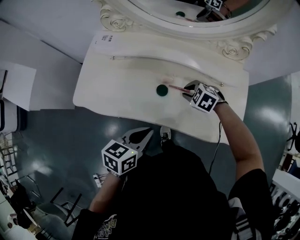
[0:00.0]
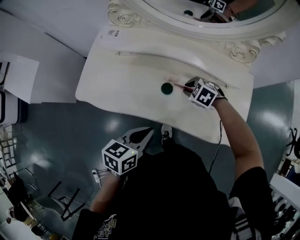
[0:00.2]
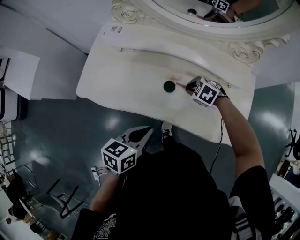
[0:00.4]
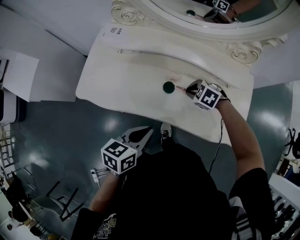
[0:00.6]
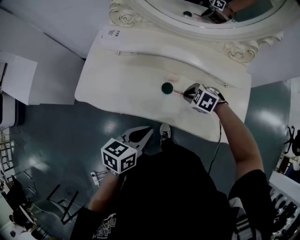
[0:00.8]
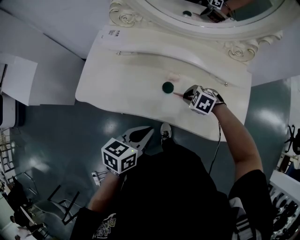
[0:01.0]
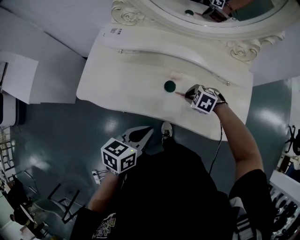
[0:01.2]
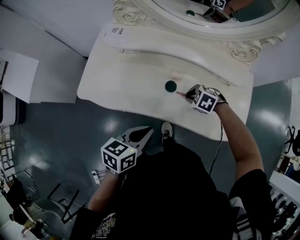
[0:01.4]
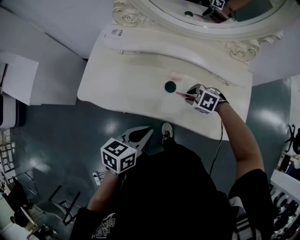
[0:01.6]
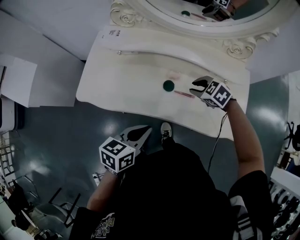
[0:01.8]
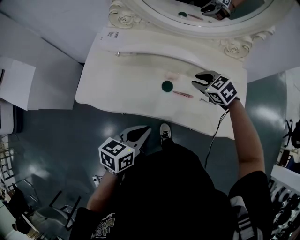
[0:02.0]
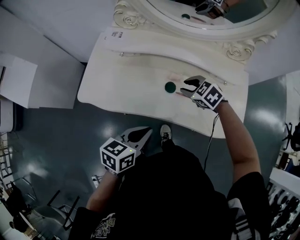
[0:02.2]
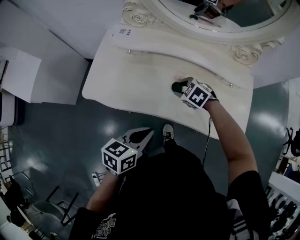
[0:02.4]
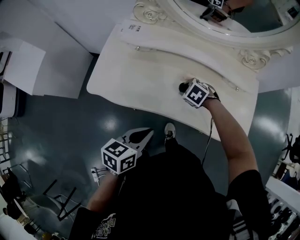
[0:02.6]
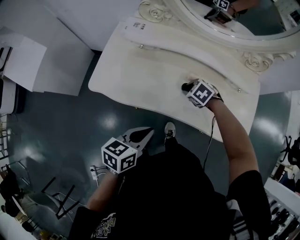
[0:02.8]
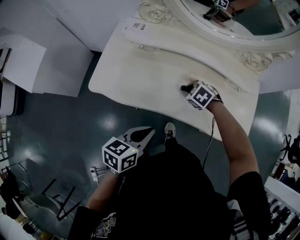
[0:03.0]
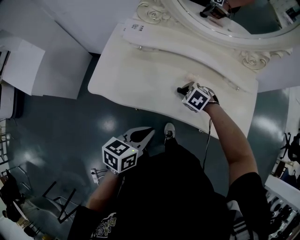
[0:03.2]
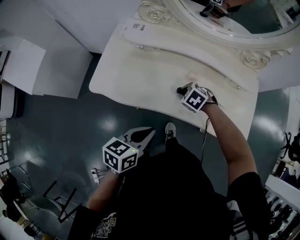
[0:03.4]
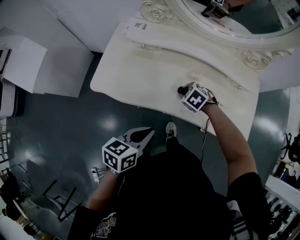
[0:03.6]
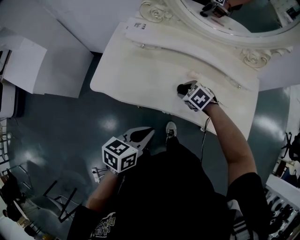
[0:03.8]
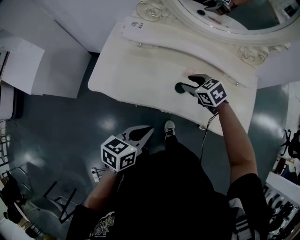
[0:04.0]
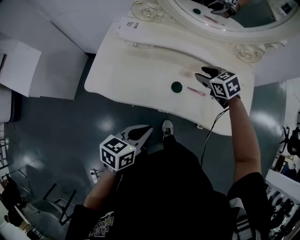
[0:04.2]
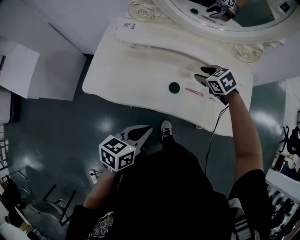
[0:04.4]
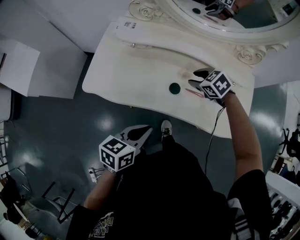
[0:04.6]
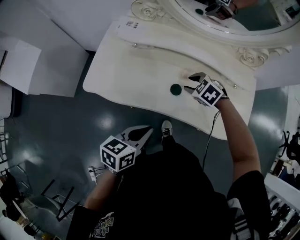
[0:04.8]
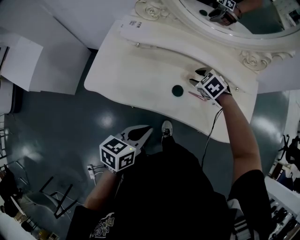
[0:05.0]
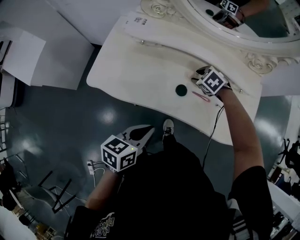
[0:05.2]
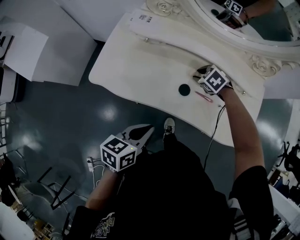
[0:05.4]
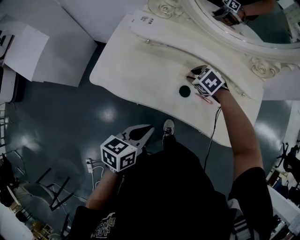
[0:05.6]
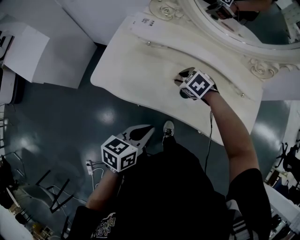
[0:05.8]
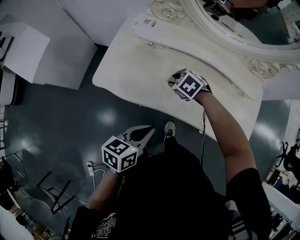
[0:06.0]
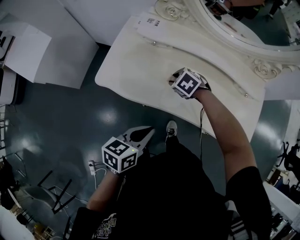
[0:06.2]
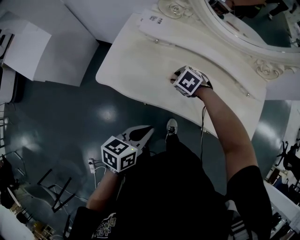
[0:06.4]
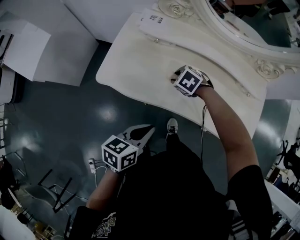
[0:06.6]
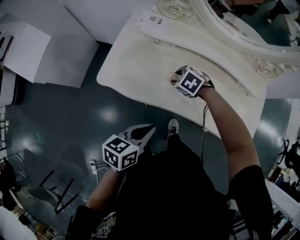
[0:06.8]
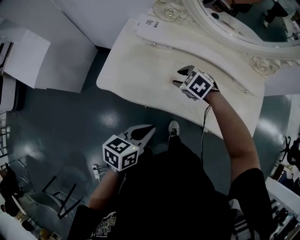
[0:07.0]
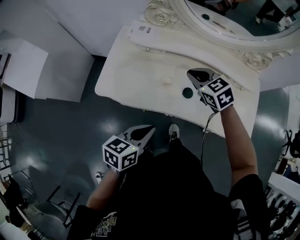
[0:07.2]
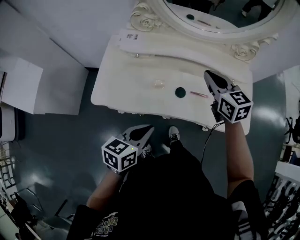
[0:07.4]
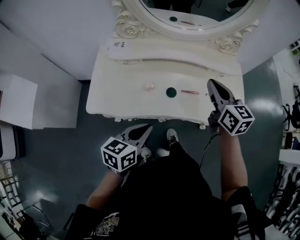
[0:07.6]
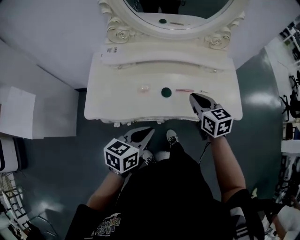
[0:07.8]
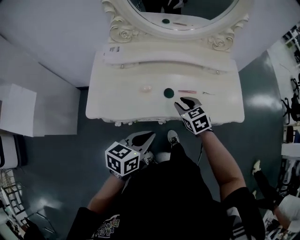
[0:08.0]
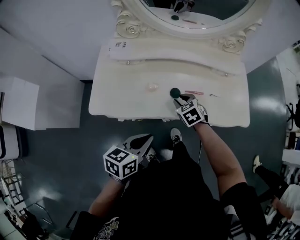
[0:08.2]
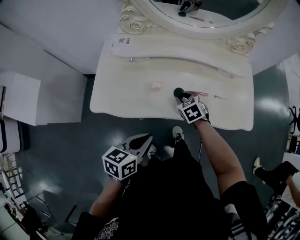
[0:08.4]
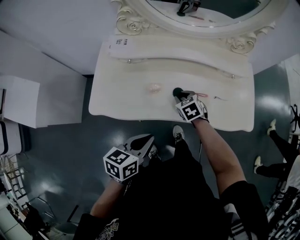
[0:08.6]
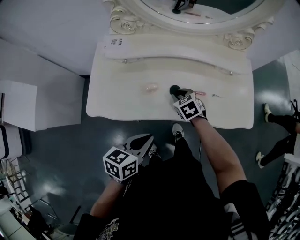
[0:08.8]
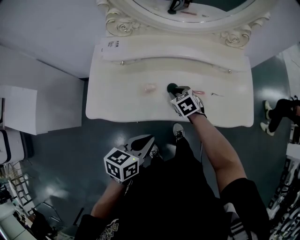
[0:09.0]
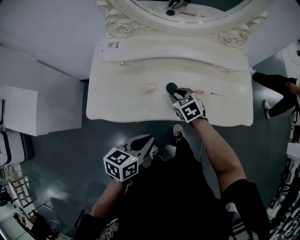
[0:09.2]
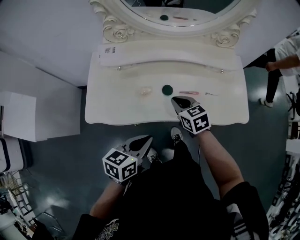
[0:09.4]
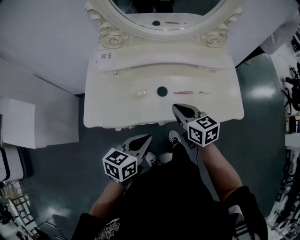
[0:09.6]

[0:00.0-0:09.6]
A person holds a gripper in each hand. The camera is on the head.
0:00.0 to 0:01.6: The grippers stay close to where they were, moving slightly.
0:01.6 to 0:03.2: The left gripper changes place by about 5 cm. The right gripper moves about 10 cm upward and comes back.
0:03.2 to 0:04.8: The right gripper travels upward and back again, approximately 10 cm each way, and opens its fingers.
0:04.8 to 0:06.4: The right gripper shifts roughly 15 cm to the left, while the left gripper heads to the left, covering approximately 5 cm.
0:06.4 to 0:08.0: The right gripper goes upward and returns, about 25 cm each way, rotates roughly 50 degrees, and closes, then reopens; the left gripper changes place by some 5 cm, and changes its angle by approximately 20 degrees.
0:08.0 to 0:09.6: The right gripper shifts some 5 cm upward, changes its angle by approximately 30 degrees, and closes its fingers.

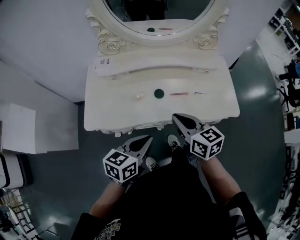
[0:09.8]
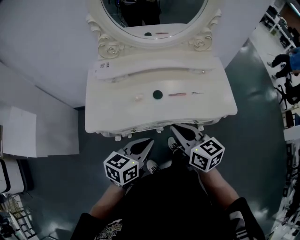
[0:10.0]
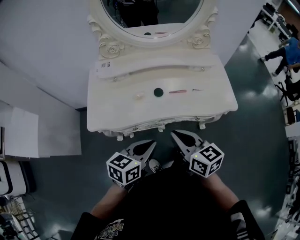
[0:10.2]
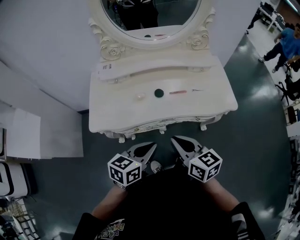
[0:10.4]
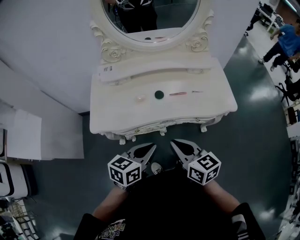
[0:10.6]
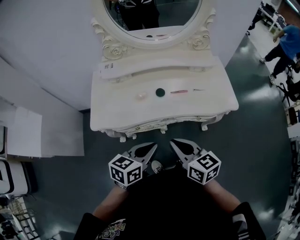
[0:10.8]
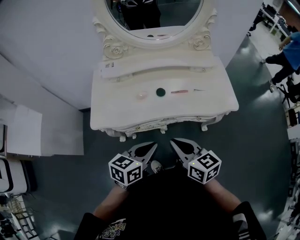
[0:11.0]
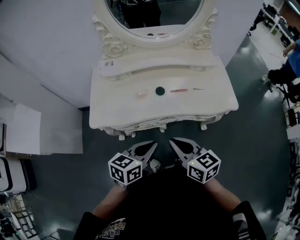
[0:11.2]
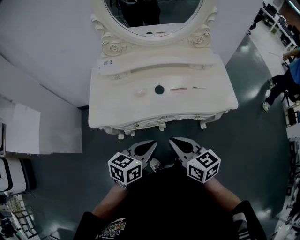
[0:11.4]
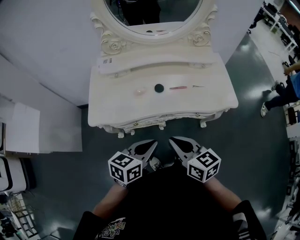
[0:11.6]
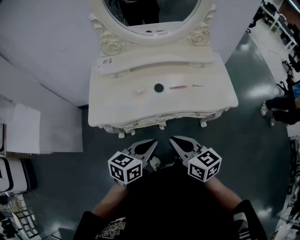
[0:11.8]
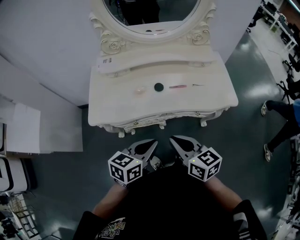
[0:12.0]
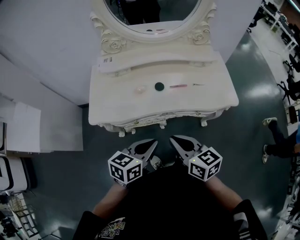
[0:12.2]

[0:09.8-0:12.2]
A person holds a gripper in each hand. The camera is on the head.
0:09.8 to 0:11.0: The left gripper travels backward by about 5 cm; the right gripper goes approximately 15 cm backward.
0:11.0 to 0:12.2: The two grippers keep their place.

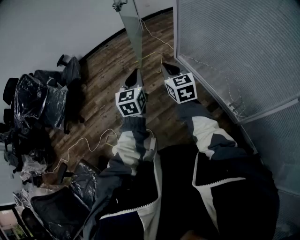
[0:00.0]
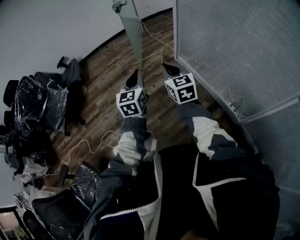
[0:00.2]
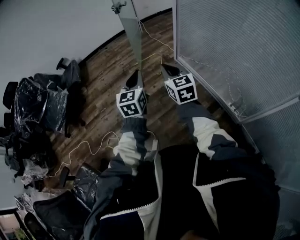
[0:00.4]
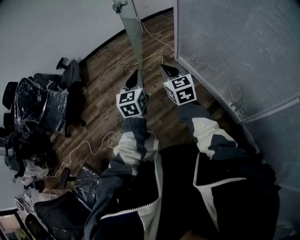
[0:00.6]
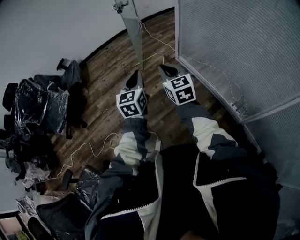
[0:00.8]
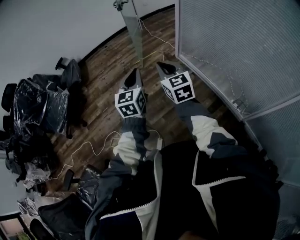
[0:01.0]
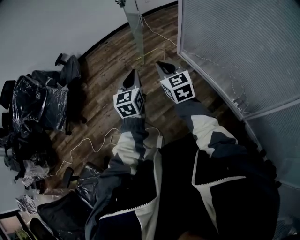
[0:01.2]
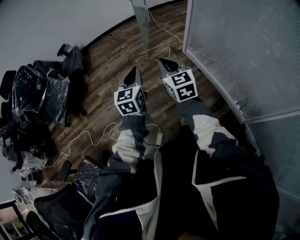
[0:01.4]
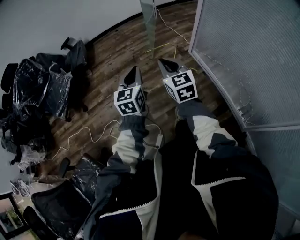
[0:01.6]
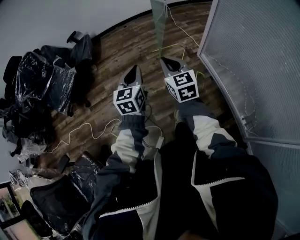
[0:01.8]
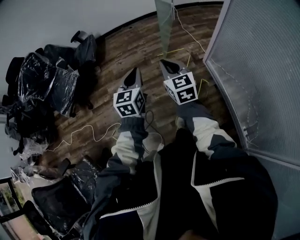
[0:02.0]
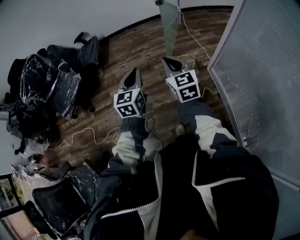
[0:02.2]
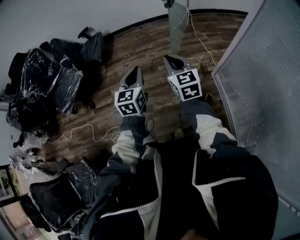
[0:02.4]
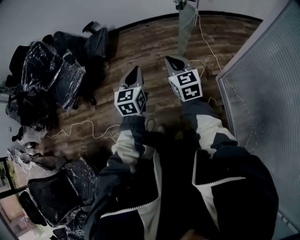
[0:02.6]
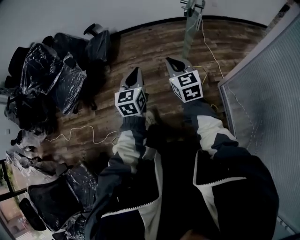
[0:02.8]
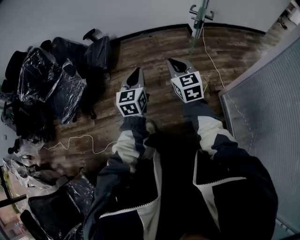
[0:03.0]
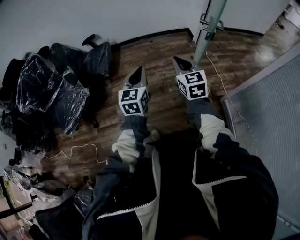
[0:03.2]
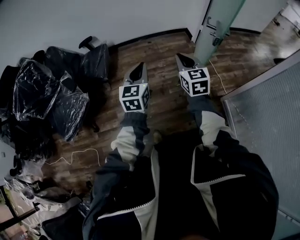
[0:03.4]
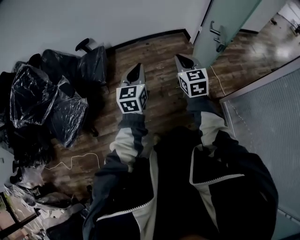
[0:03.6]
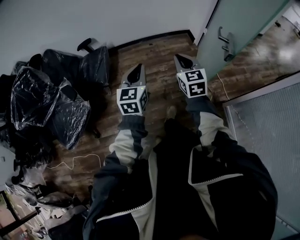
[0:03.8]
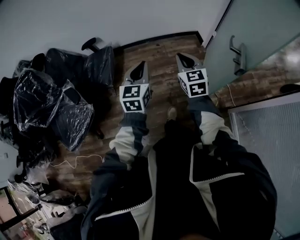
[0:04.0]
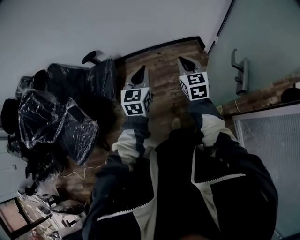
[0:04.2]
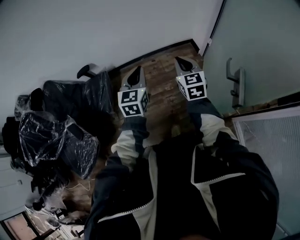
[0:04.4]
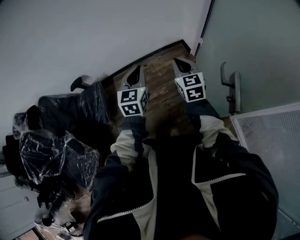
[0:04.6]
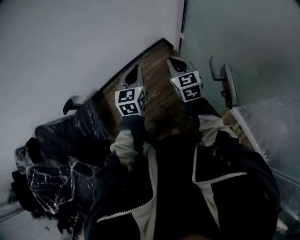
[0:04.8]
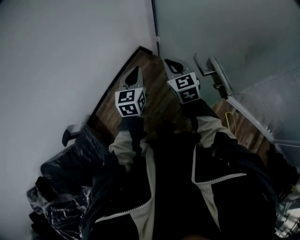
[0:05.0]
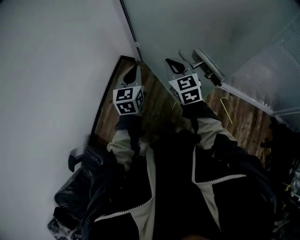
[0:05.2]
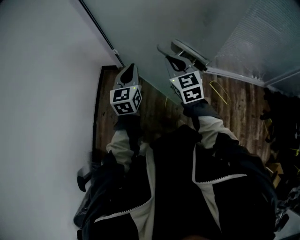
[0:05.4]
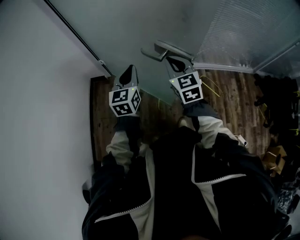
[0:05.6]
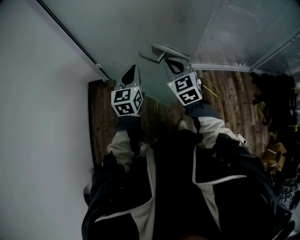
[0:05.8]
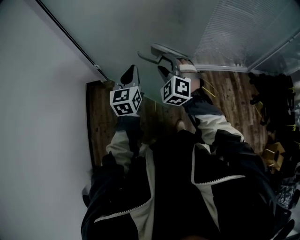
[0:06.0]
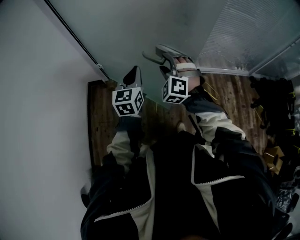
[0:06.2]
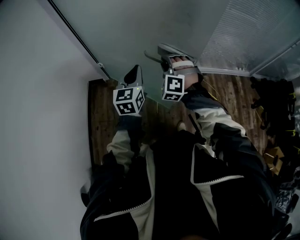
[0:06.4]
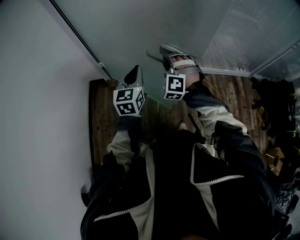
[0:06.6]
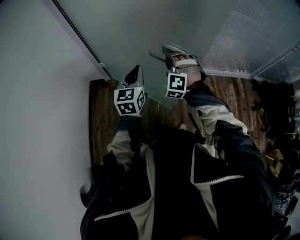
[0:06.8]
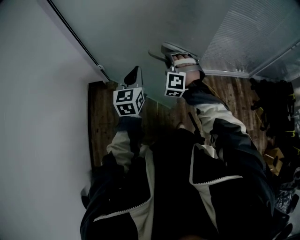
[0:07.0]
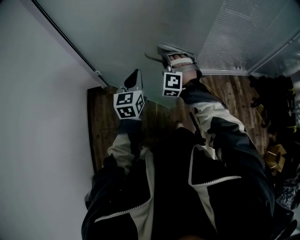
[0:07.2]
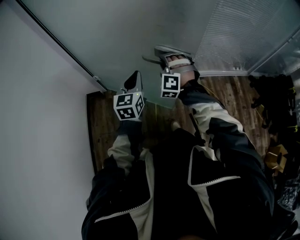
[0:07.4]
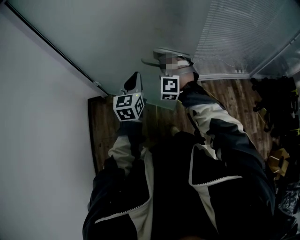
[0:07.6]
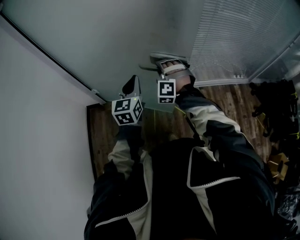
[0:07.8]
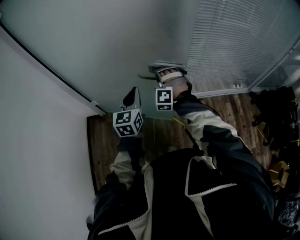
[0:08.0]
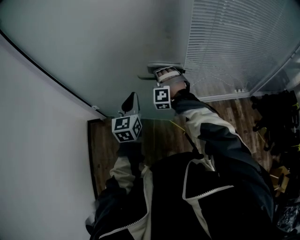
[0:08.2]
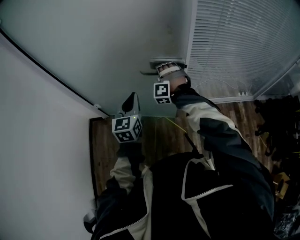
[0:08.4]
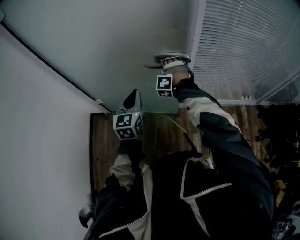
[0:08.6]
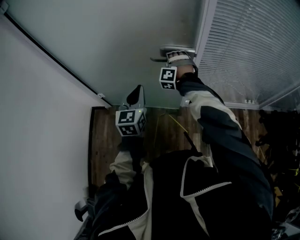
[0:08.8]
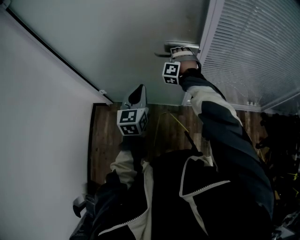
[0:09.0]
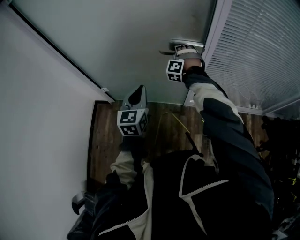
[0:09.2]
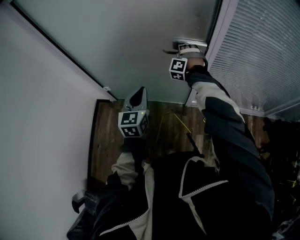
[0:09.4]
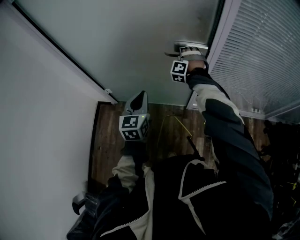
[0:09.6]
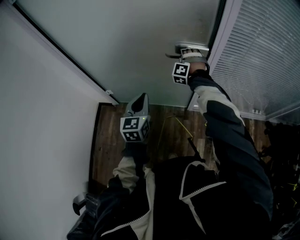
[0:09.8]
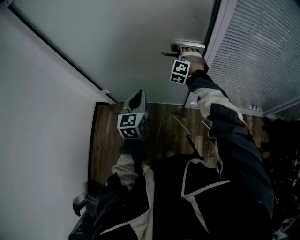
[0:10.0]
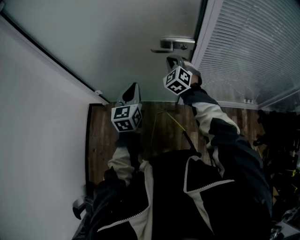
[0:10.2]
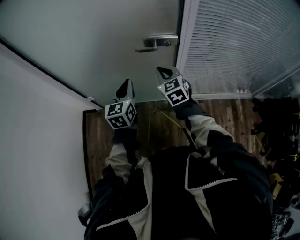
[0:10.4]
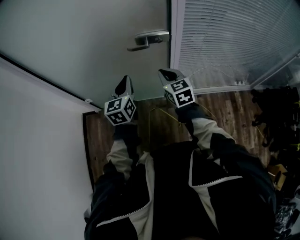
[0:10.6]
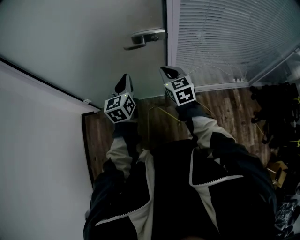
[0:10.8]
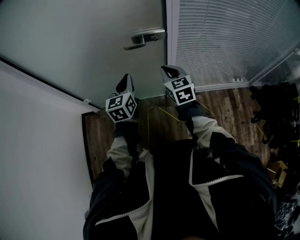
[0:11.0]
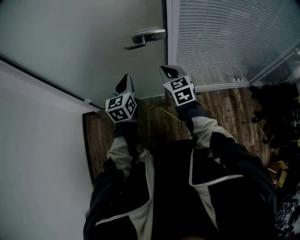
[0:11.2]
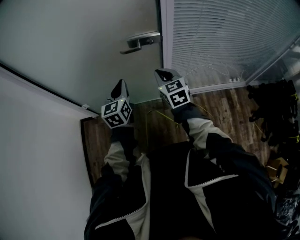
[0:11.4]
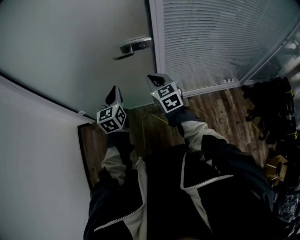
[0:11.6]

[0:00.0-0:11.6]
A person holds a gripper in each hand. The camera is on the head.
0:00.0 to 0:01.4: The two grippers go about 10 cm to the left and forward.
0:01.4 to 0:02.8: The grippers both shift forward by approximately 35 cm. The right gripper swivels roughly 20 degrees; the left gripper changes its angle by some 20 degrees.
0:02.8 to 0:04.4: The two grippers travel together, forward, some 50 cm.
0:04.4 to 0:05.8: The left gripper changes place by some 30 cm, and changes its angle by about 70 degrees. Meanwhile the right gripper changes place by roughly 25 cm, and turns by some 70 degrees.
0:05.8 to 0:07.2: The right gripper is displaced forward by some 10 cm, rotates around the line of its fingers by roughly 60 degrees, counterclockwise from behind, and opens up.
0:07.2 to 0:08.8: The right gripper shifts approximately 30 cm forward. The left gripper is displaced forward and to the right by about 20 cm.
0:08.8 to 0:10.2: The right gripper ends up about 5 cm from where it was, rotates around the line of its fingers by about 40 degrees, clockwise from behind, and closes.
0:10.2 to 0:11.6: The left gripper goes some 5 cm to the right, while the right gripper travels backward and to the right by approximately 15 cm, and changes its angle by about 40 degrees.
